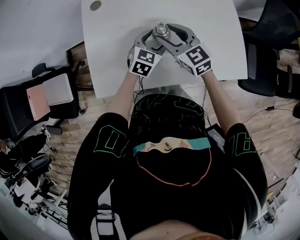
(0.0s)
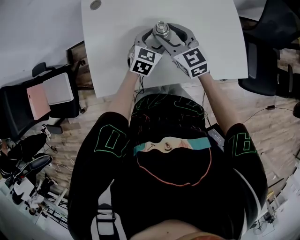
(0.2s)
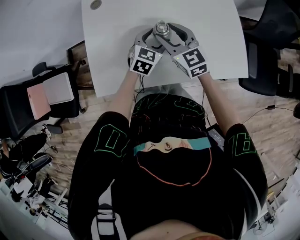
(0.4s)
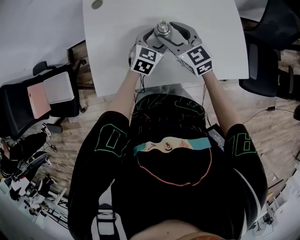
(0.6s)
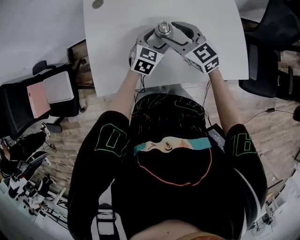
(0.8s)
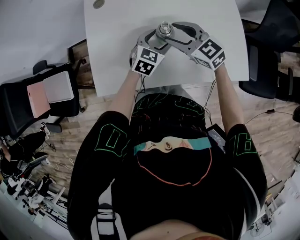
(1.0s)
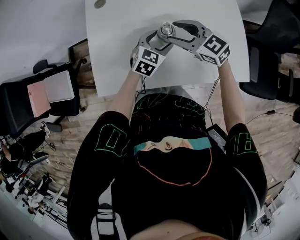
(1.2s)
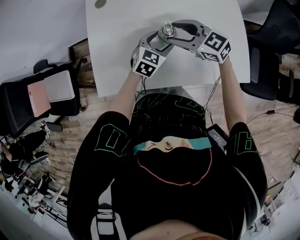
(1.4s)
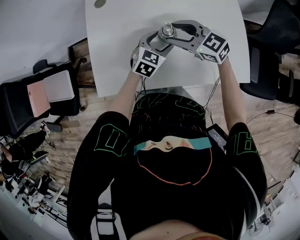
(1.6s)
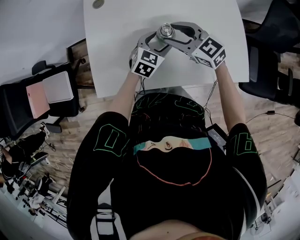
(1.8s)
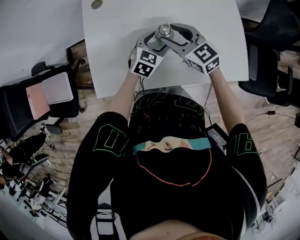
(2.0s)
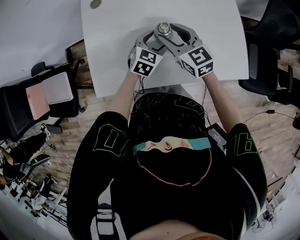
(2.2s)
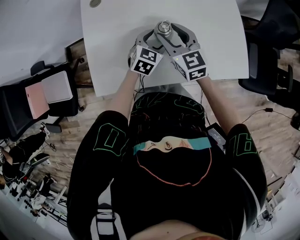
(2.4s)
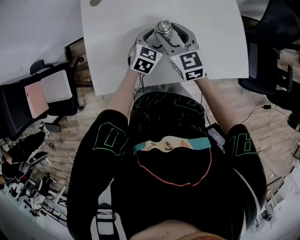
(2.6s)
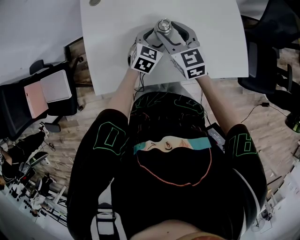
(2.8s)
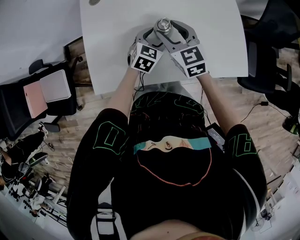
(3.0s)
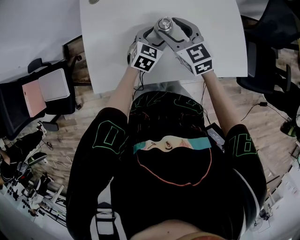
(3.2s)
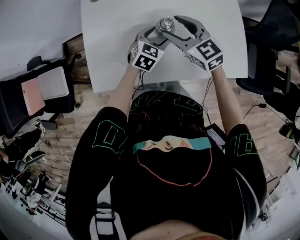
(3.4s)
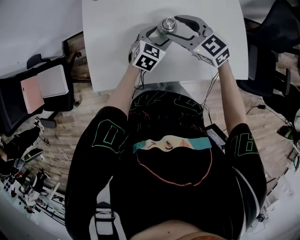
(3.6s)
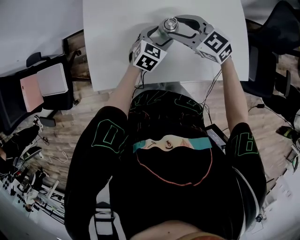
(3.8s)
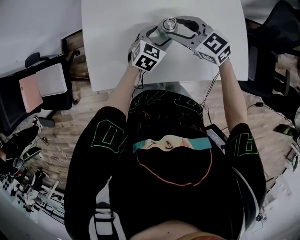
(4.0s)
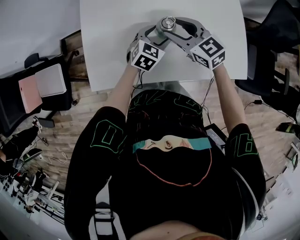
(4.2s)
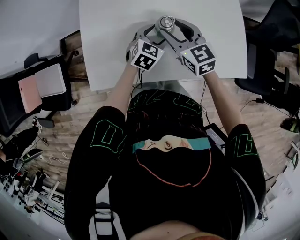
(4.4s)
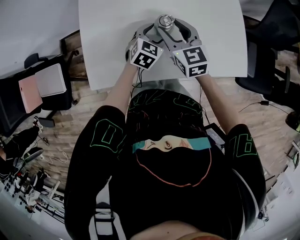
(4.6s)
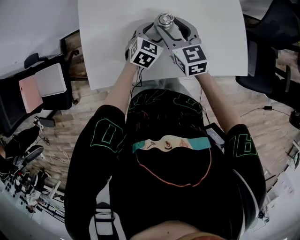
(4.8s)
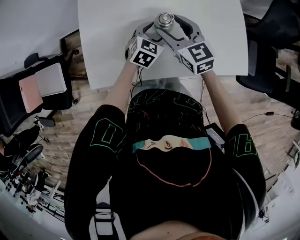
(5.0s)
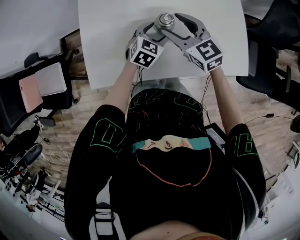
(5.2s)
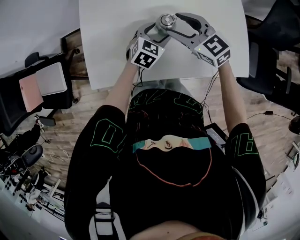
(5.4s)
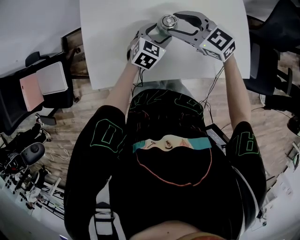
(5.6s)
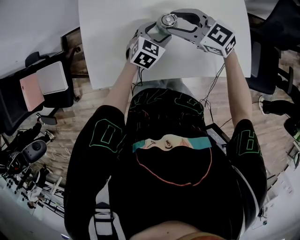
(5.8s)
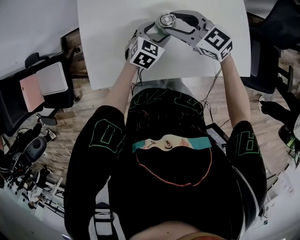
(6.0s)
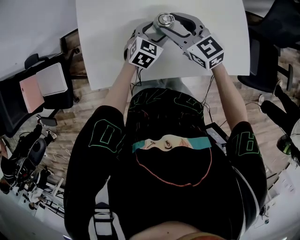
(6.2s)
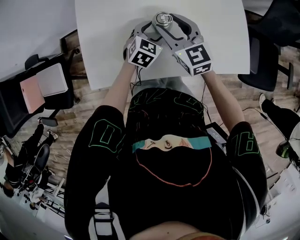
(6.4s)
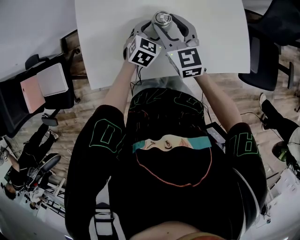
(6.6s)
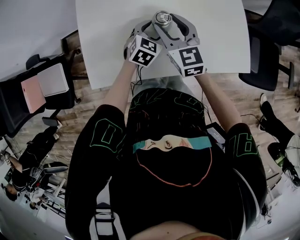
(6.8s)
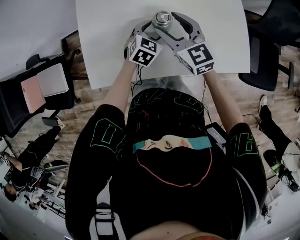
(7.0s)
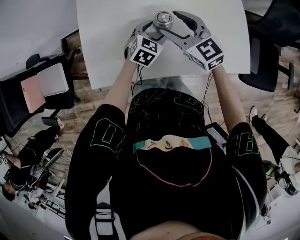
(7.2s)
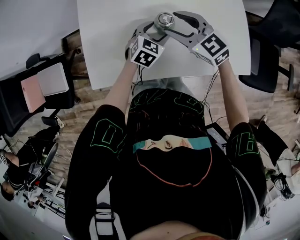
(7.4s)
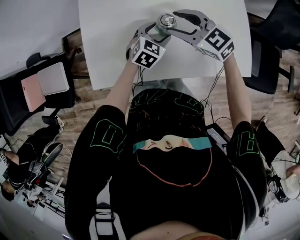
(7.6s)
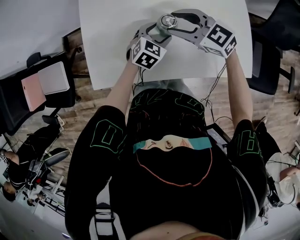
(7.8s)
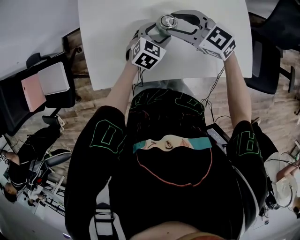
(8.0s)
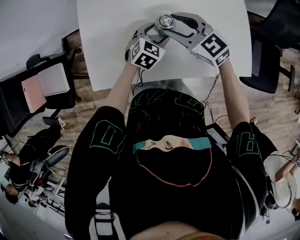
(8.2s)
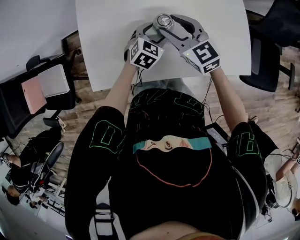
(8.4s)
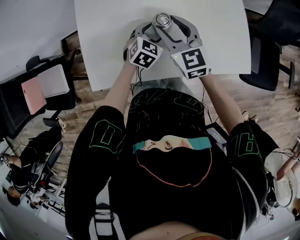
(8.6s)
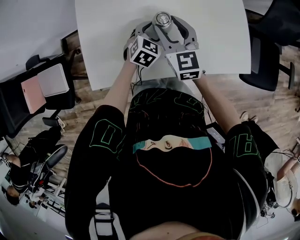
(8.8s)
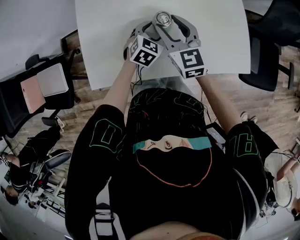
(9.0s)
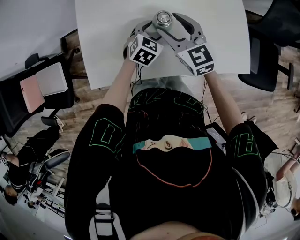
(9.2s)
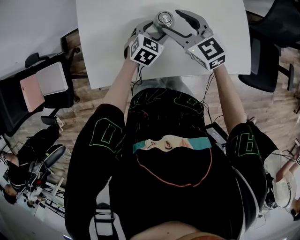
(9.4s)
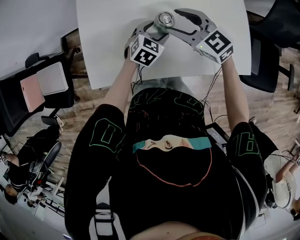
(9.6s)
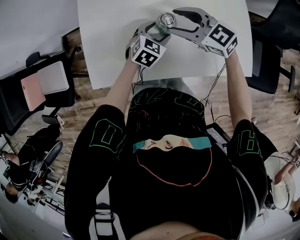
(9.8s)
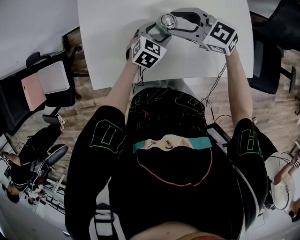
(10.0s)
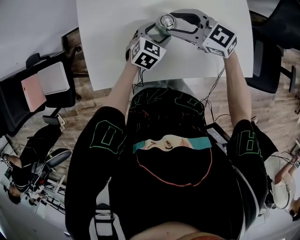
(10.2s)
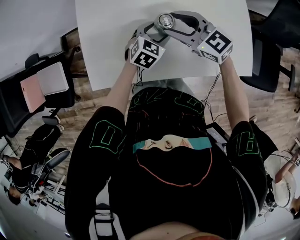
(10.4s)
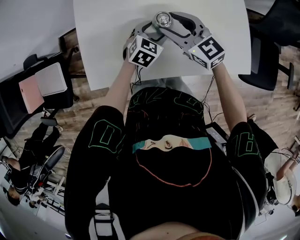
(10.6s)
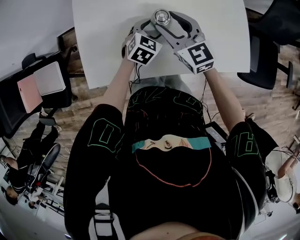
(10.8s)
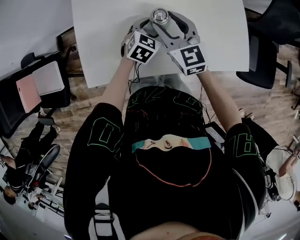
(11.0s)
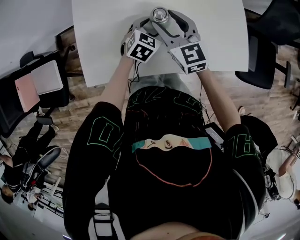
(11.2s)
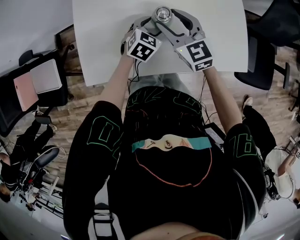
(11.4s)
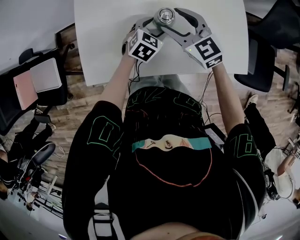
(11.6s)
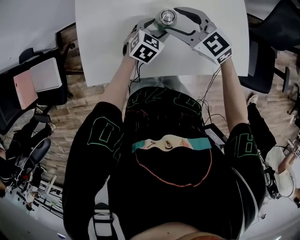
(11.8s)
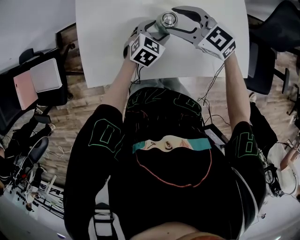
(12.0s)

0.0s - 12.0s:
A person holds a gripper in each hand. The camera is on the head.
0.0s - 1.6s: The right gripper swivels about 20 degrees.
1.6s - 3.0s: The right gripper turns by about 30 degrees.
4.4s - 6.0s: The right gripper turns by roughly 30 degrees.
7.6s - 9.0s: The right gripper rotates approximately 40 degrees.
9.0s - 10.4s: The right gripper rotates approximately 30 degrees.

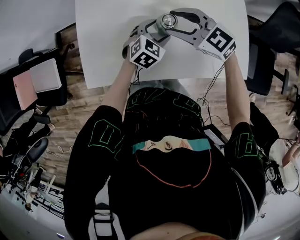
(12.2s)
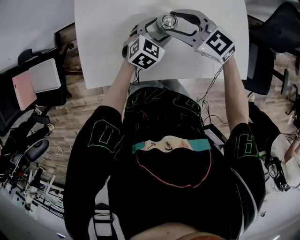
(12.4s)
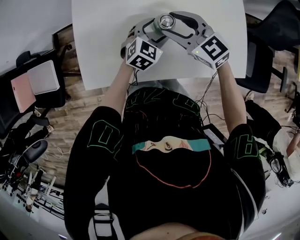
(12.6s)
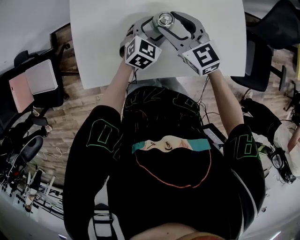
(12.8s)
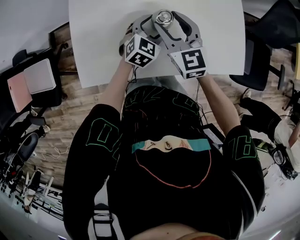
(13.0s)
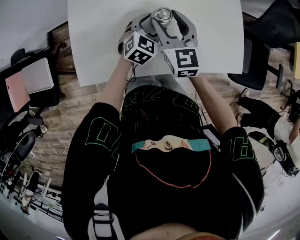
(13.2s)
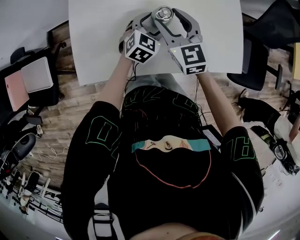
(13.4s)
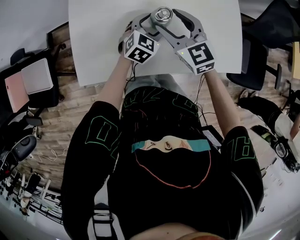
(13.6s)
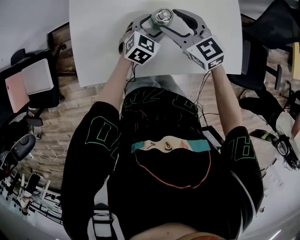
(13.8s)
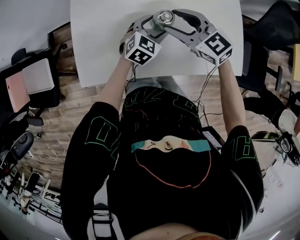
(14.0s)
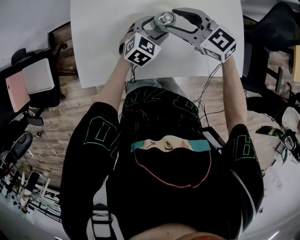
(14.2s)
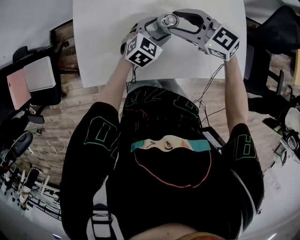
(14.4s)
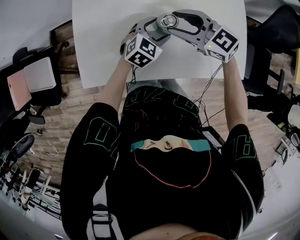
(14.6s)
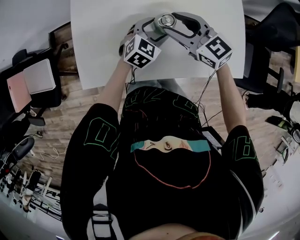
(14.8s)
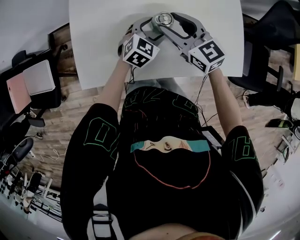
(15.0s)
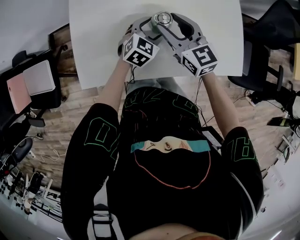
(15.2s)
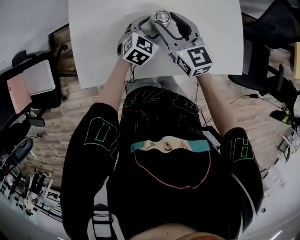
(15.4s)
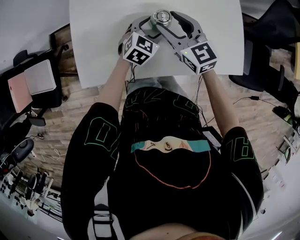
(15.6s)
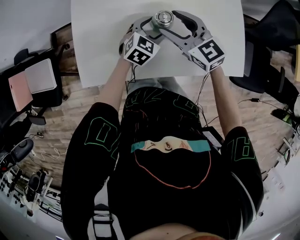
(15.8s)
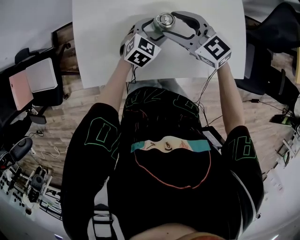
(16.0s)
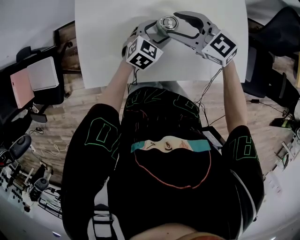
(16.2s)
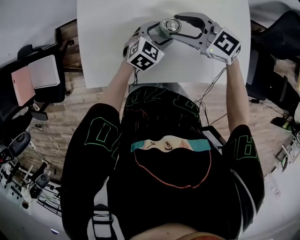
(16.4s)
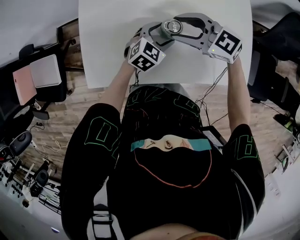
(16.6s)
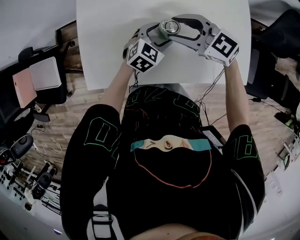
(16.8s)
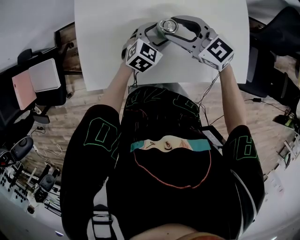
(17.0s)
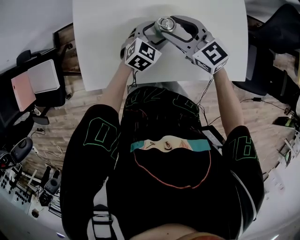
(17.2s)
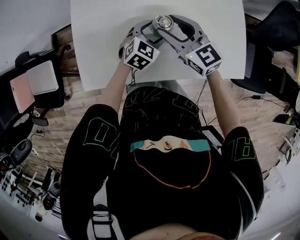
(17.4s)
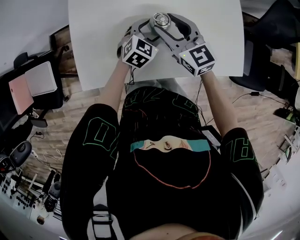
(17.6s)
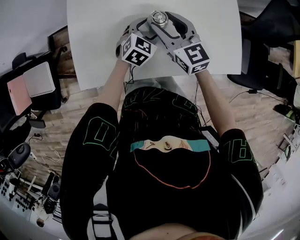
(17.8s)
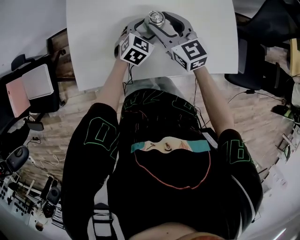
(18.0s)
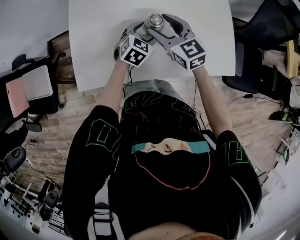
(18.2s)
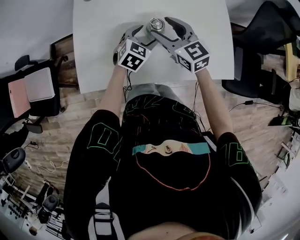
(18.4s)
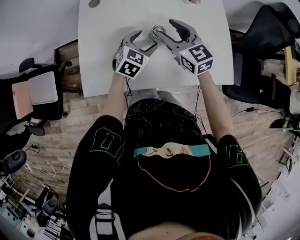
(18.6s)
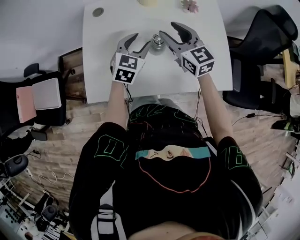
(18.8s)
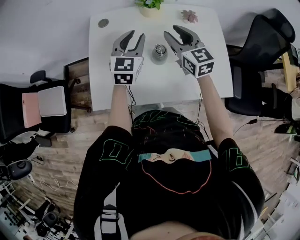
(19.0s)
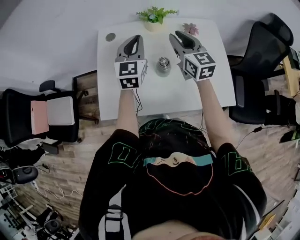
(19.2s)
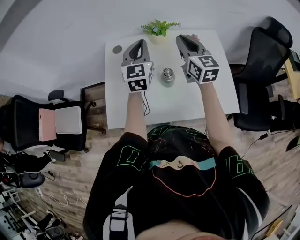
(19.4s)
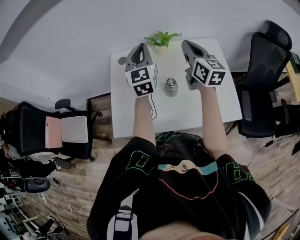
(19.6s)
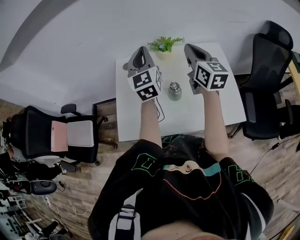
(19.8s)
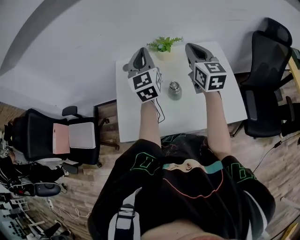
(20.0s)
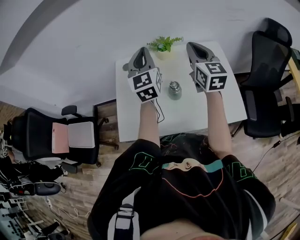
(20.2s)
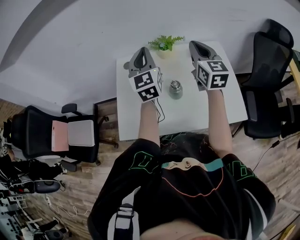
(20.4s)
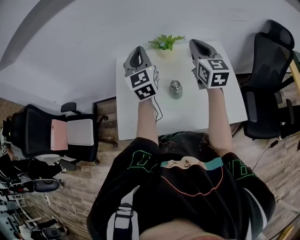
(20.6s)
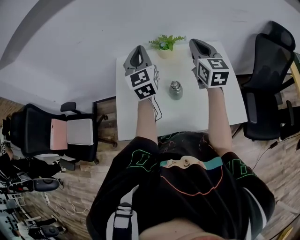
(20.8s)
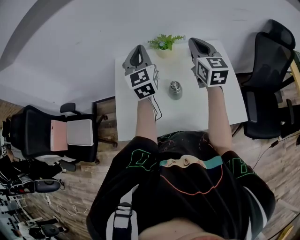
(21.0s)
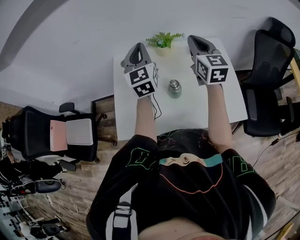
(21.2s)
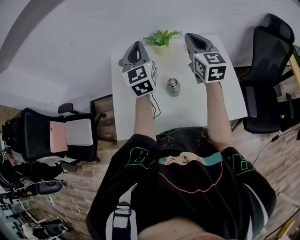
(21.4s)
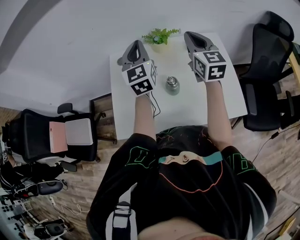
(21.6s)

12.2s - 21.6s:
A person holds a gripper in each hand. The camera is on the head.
12.2s - 13.8s: The right gripper rotates about 20 degrees.
13.8s - 15.4s: The right gripper swivels roughly 20 degrees.
15.4s - 17.0s: The right gripper swivels about 30 degrees.
17.0s - 18.4s: The right gripper swivels some 20 degrees.
18.4s - 20.0s: The left gripper shifts about 35 cm upward, points its fingers roughly 40 degrees further upward, and closes up. Meanwhile the right gripper moves upward, some 20 cm, changes its angle by approximately 30 degrees, and closes.
20.0s - 21.6s: There are only small adjustments of the grippers.

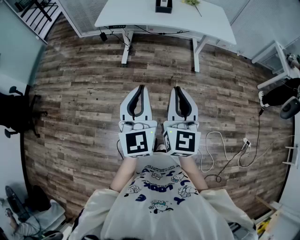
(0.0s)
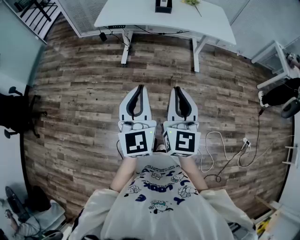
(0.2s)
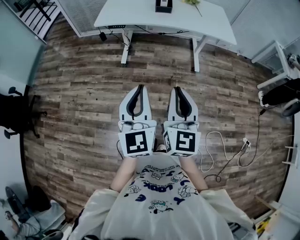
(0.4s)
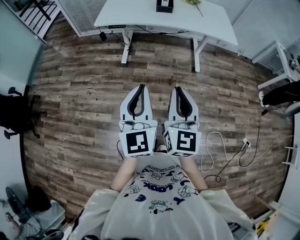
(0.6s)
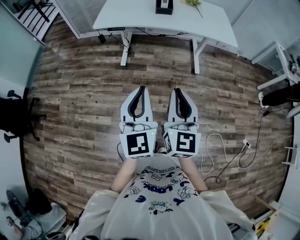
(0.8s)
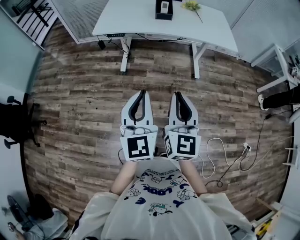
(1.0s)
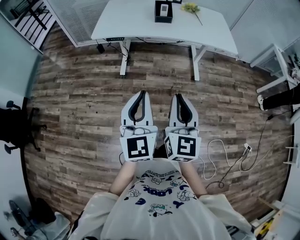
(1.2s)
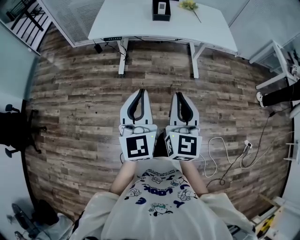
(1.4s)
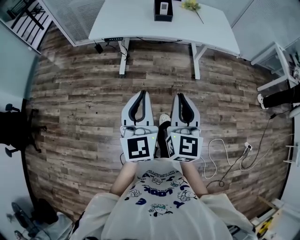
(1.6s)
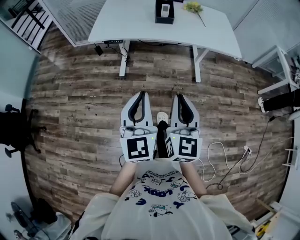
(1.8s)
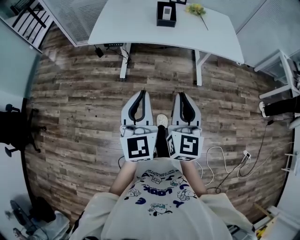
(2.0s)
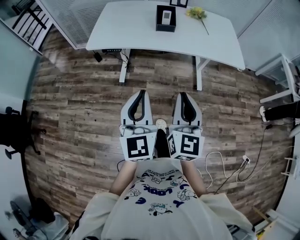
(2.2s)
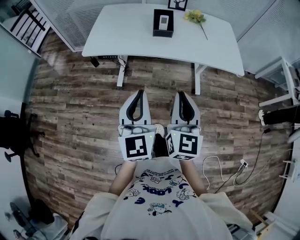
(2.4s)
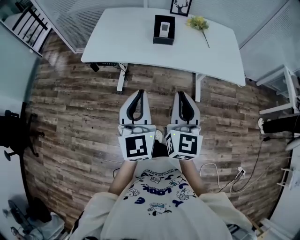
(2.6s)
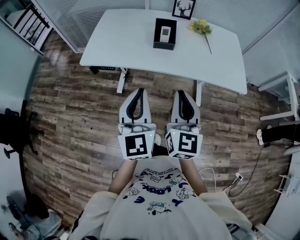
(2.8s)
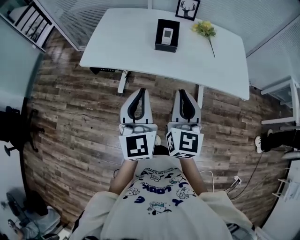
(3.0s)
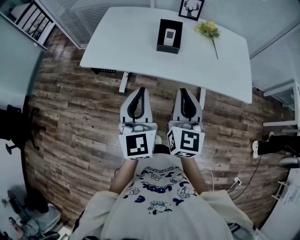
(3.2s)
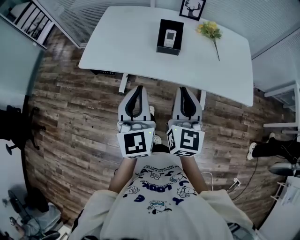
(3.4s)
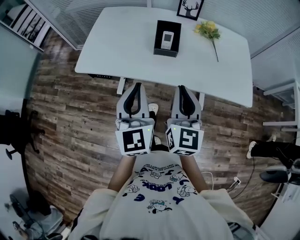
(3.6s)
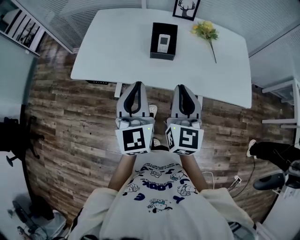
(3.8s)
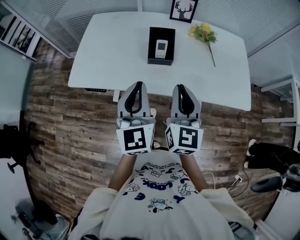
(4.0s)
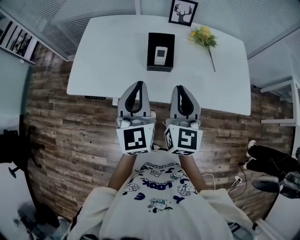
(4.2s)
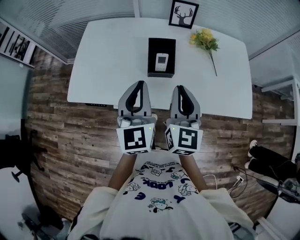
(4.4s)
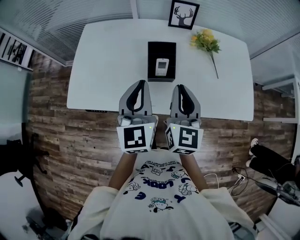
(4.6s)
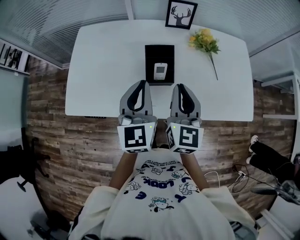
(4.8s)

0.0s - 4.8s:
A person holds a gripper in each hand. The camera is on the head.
0.0s - 1.6s: Both grippers travel together forward, roughly 15 cm.
1.6s - 3.2s: Both grippers move forward, some 35 cm.
3.2s - 4.8s: The two grippers go approximately 30 cm forward.
